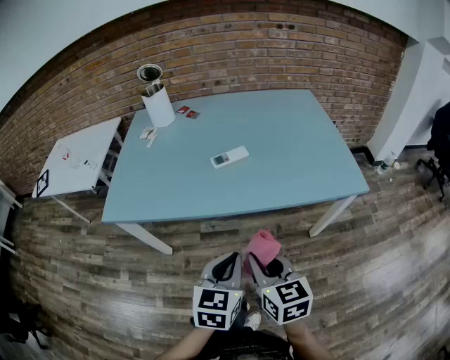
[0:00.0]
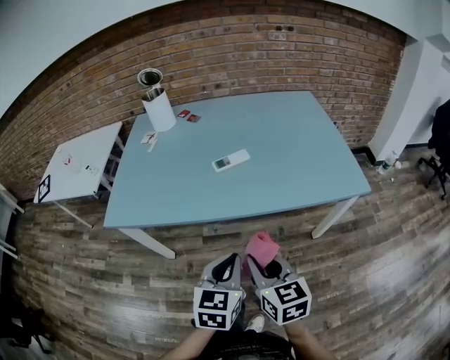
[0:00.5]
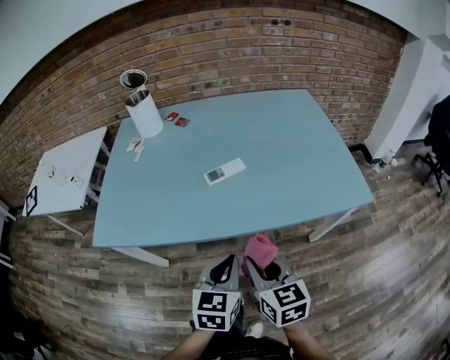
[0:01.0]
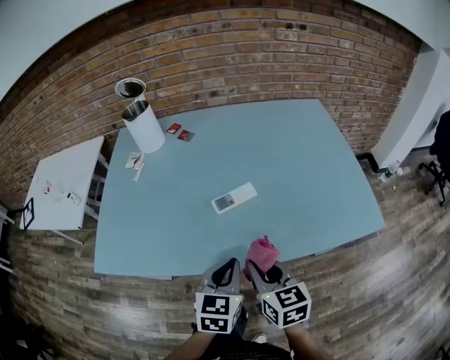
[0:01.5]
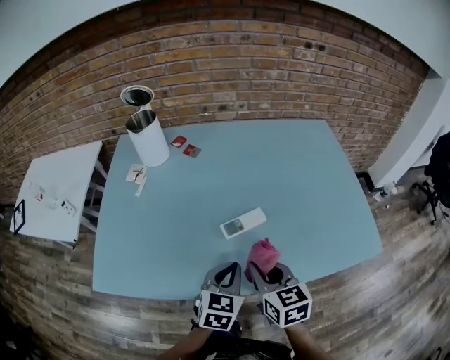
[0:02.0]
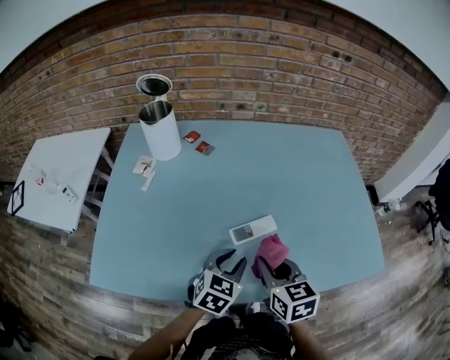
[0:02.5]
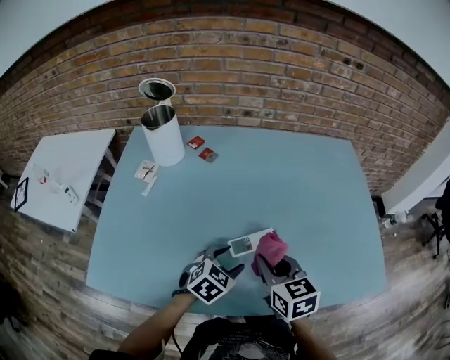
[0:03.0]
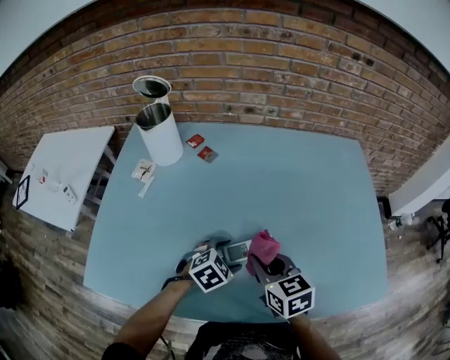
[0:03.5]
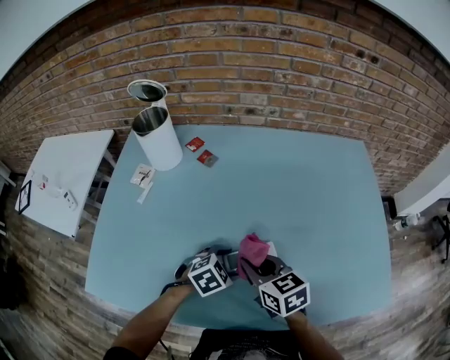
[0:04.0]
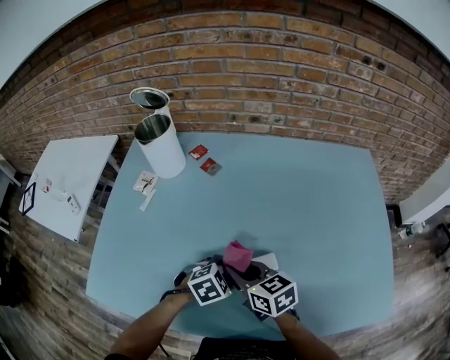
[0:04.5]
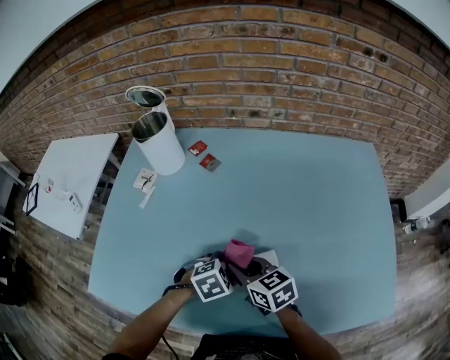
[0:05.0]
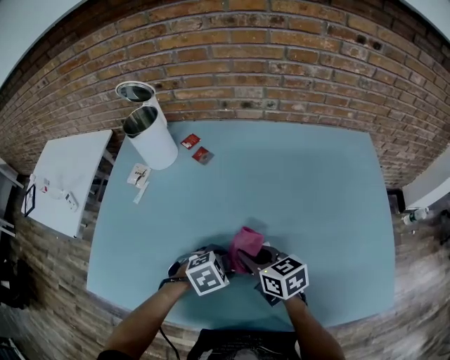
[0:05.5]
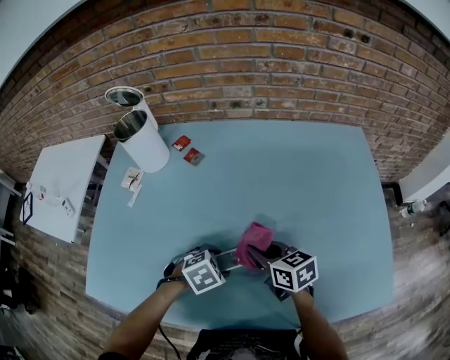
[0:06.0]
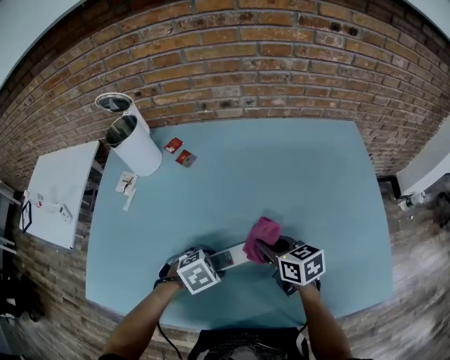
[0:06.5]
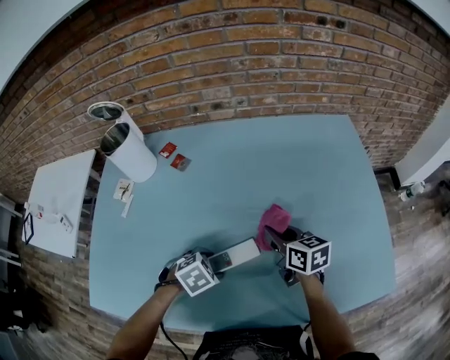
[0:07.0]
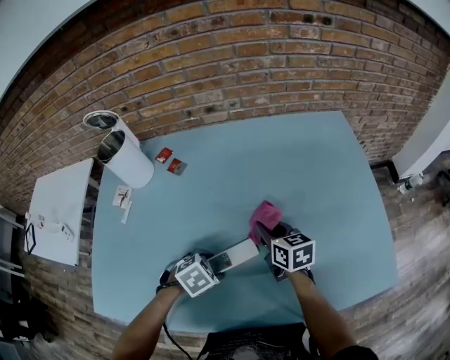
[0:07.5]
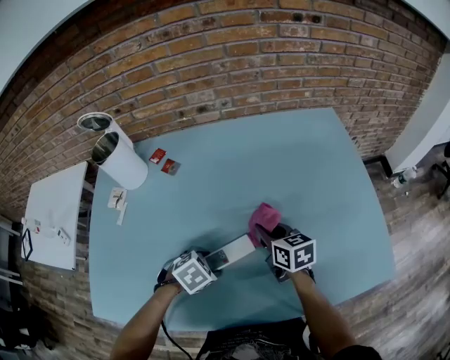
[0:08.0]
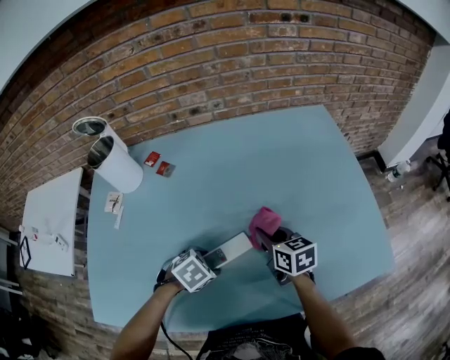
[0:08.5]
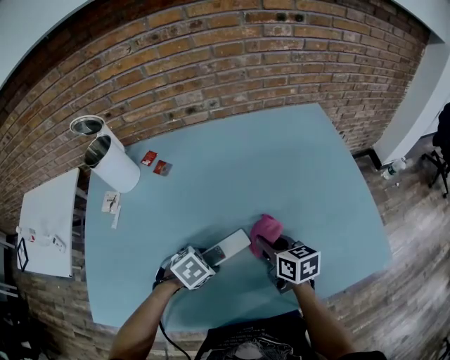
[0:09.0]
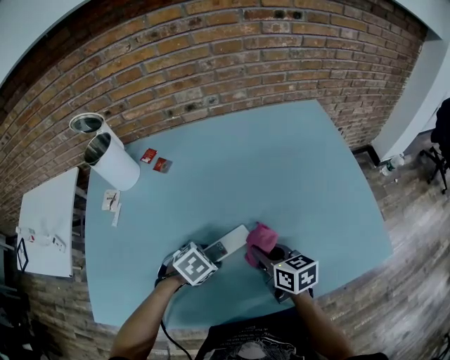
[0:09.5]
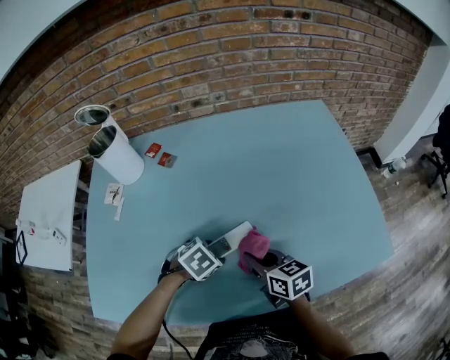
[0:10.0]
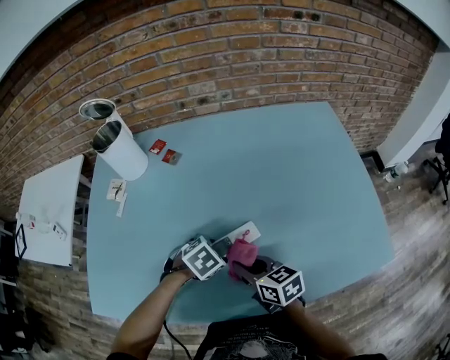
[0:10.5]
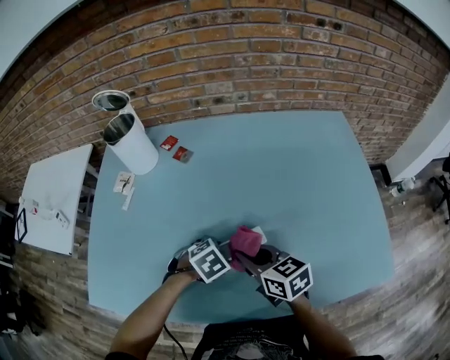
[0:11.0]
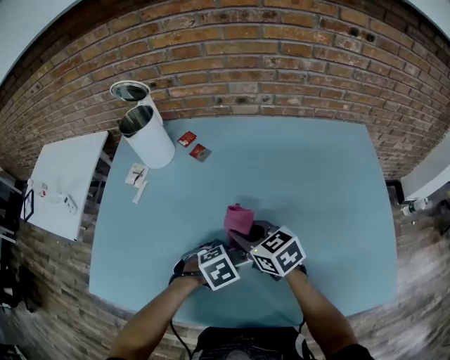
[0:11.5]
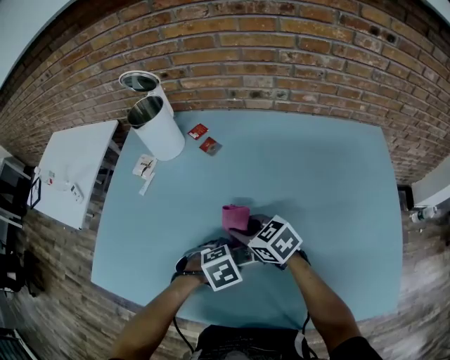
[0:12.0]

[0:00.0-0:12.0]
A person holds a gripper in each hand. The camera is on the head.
0:00.0 to 0:02.0: The two grippers go approximately 25 cm forward.
0:02.0 to 0:04.0: The right gripper goes approximately 15 cm forward, and rotates some 20 degrees; the left gripper shifts some 15 cm forward and downward, swivels roughly 40 degrees, and opens.
0:04.0 to 0:06.0: The right gripper changes place by about 10 cm.
0:06.0 to 0:08.0: The right gripper moves forward and to the right, some 10 cm.
0:08.0 to 0:10.0: The right gripper is displaced backward by approximately 15 cm.
0:10.0 to 0:12.0: The right gripper changes place by about 15 cm, and changes its angle by roughly 40 degrees.

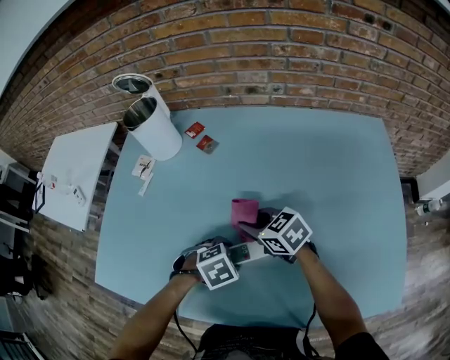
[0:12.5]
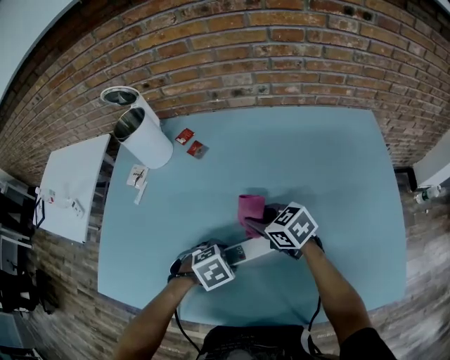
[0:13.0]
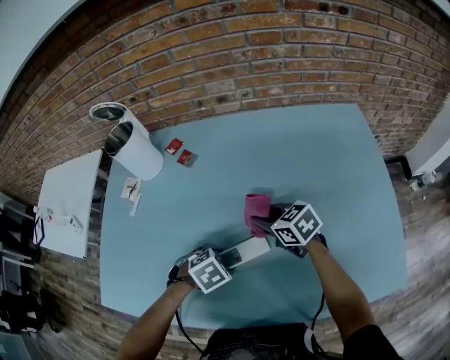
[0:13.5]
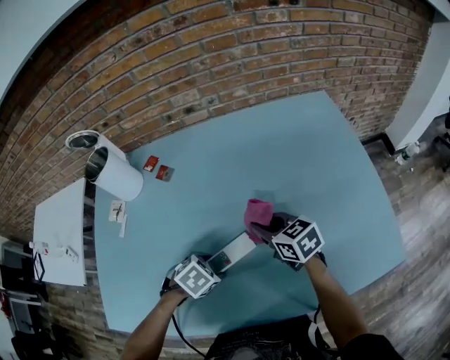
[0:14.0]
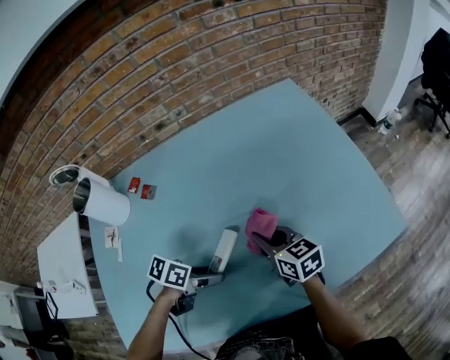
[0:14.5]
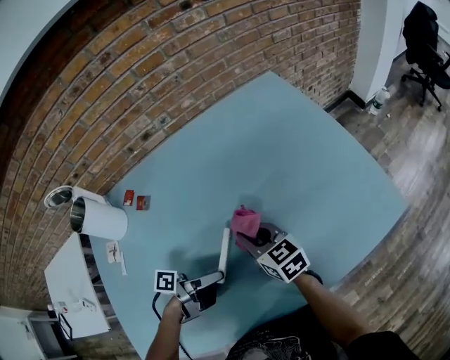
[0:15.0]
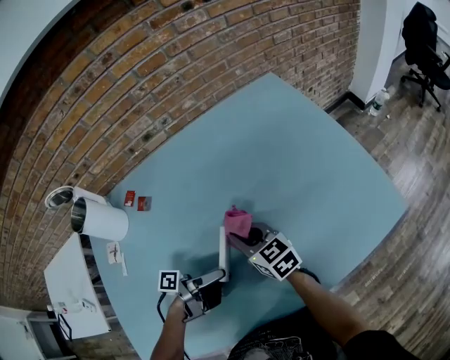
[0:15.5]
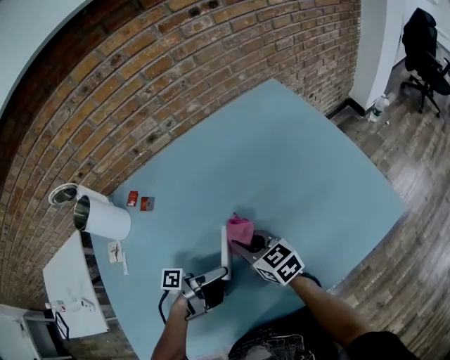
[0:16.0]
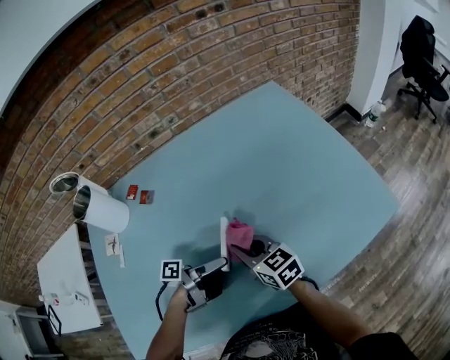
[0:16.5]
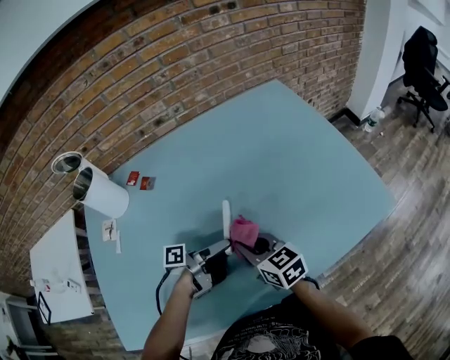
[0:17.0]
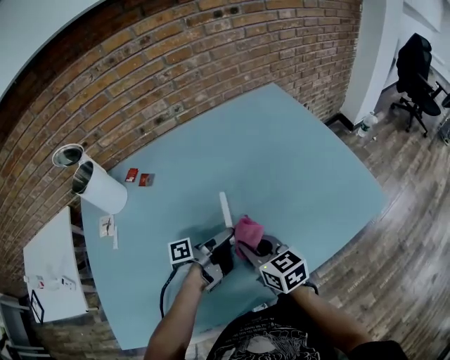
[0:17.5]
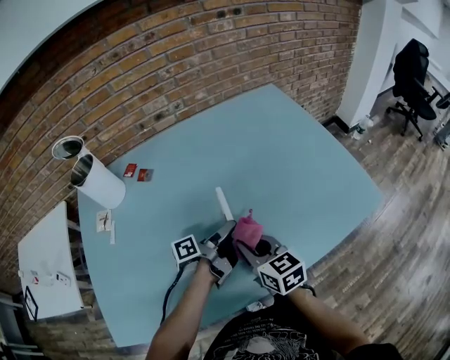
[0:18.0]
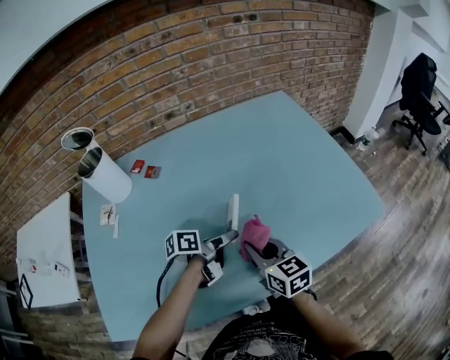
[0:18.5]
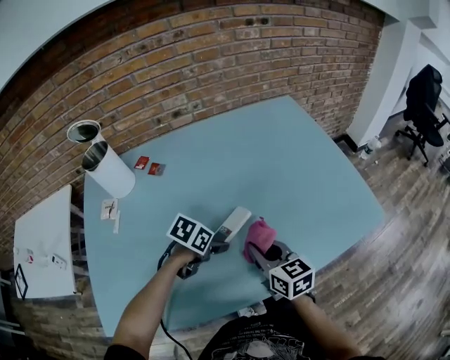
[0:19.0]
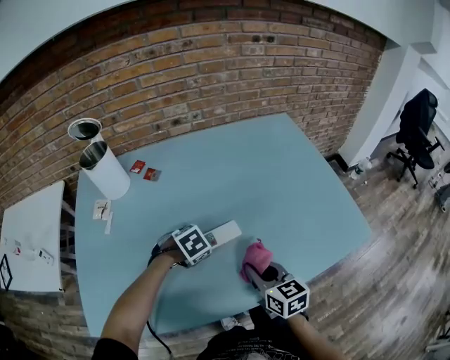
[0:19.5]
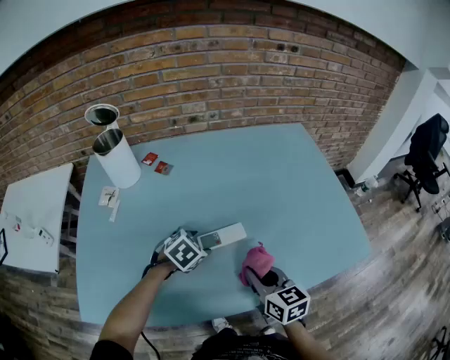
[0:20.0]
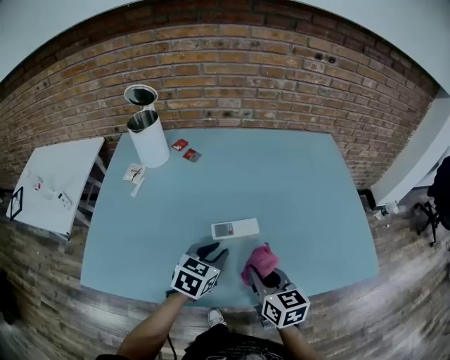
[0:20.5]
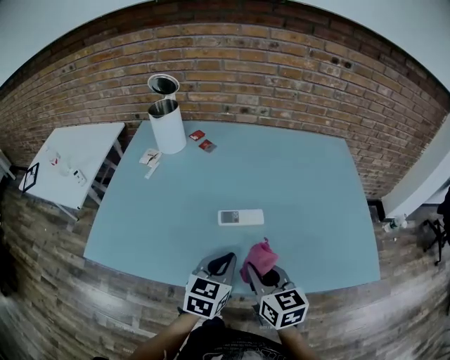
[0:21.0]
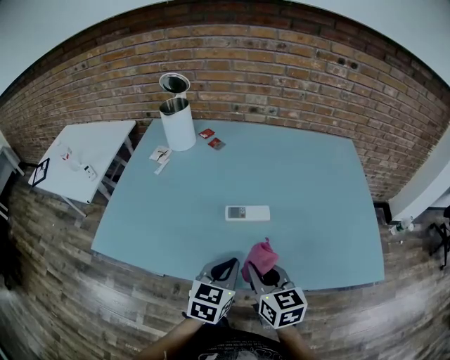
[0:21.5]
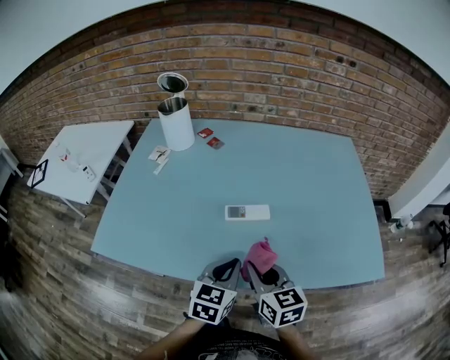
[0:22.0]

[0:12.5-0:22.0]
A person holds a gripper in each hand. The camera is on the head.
0:12.5 to 0:14.5: The right gripper moves roughly 15 cm, and swivels some 50 degrees. Meanwhile the left gripper angles its fingers upward, by approximately 30 degrees.
0:14.5 to 0:16.5: The left gripper angles its fingers upward, by roughly 40 degrees, while the right gripper changes place by some 10 cm.
0:16.5 to 0:18.0: The left gripper swivels approximately 20 degrees. Meanwhile the right gripper is displaced backward by some 5 cm.
0:18.0 to 0:20.0: The right gripper changes place by approximately 5 cm, while the left gripper heads to the left, covering approximately 10 cm, and rotates around the line of its fingers by about 90 degrees, clockwise from behind.
0:20.0 to 0:22.0: The left gripper travels backward and upward by roughly 20 cm, angles its fingers upward, by approximately 30 degrees, and closes its fingers. Meanwhile the right gripper heads backward, covering roughly 5 cm.

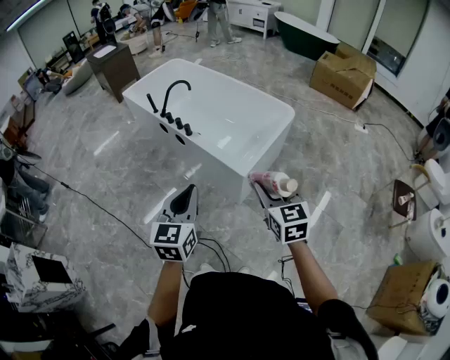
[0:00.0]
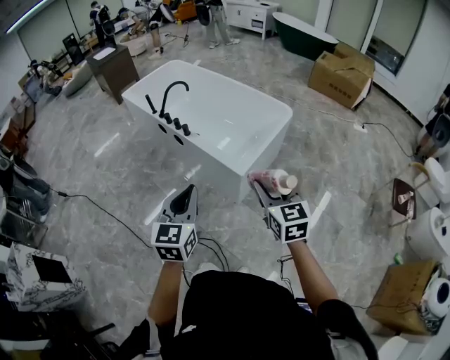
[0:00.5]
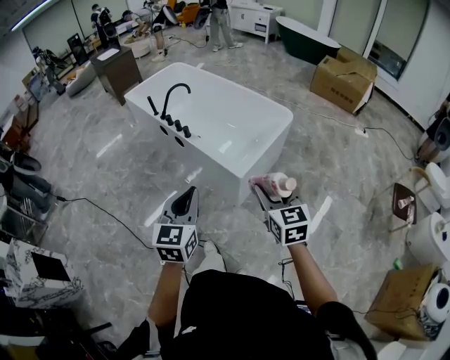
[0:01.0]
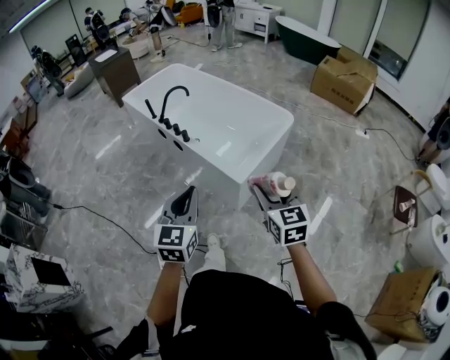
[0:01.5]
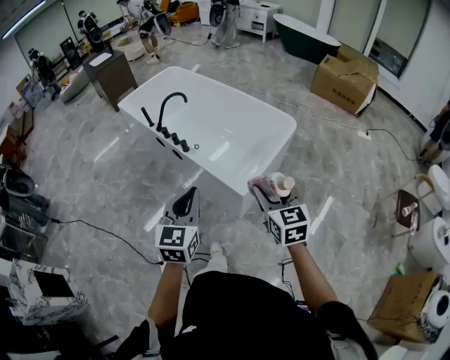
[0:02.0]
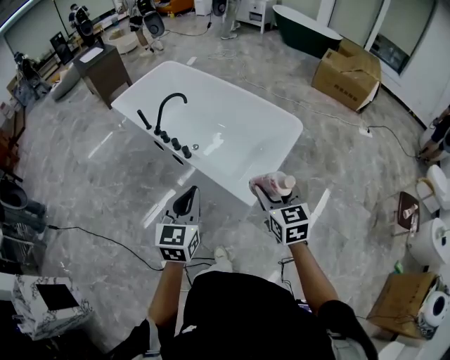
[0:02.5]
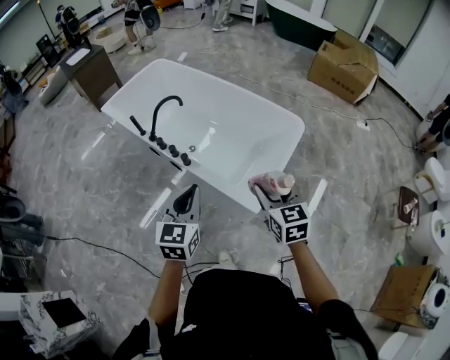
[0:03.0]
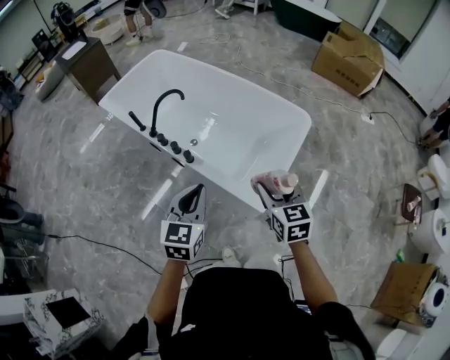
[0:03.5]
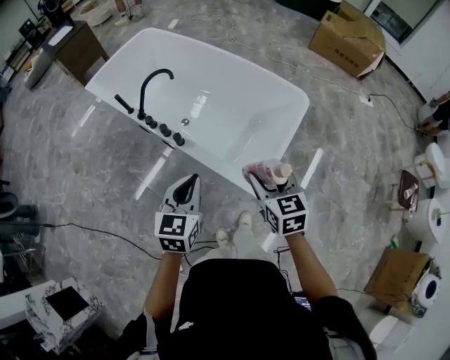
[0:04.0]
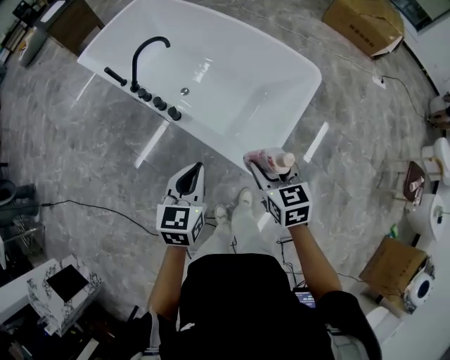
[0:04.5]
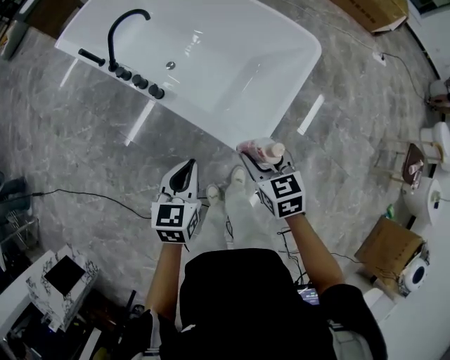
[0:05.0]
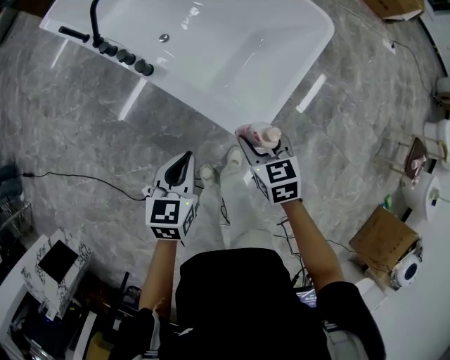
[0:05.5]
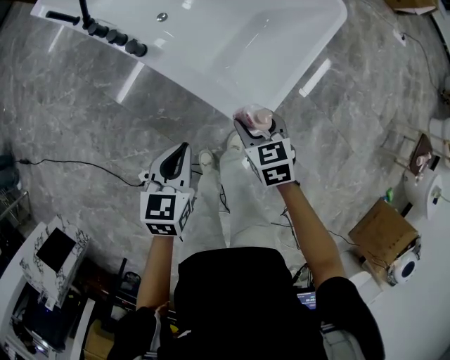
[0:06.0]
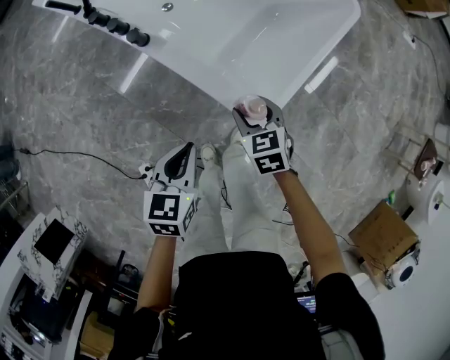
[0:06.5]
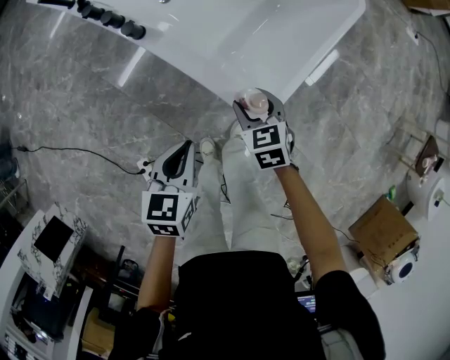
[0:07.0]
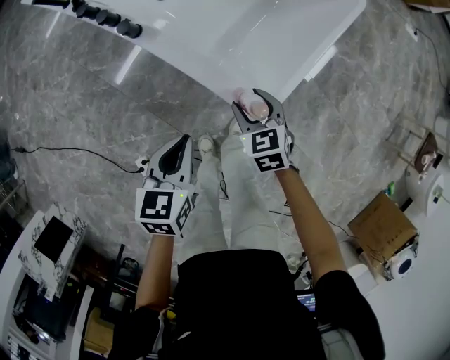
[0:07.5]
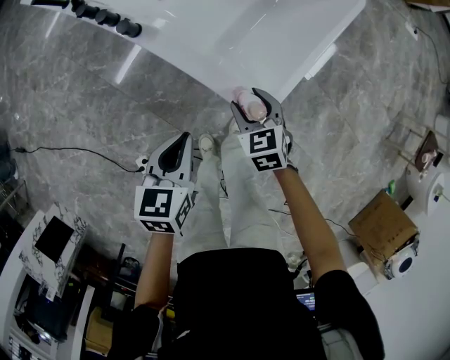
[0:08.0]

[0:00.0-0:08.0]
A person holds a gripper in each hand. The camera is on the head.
0:00.0 to 0:02.0: Both grippers travel together forward, some 10 cm.
0:02.0 to 0:04.0: The left gripper moves forward, approximately 25 cm, while the right gripper moves forward and to the left, some 25 cm.
0:04.0 to 0:06.0: Both grippers travel together downward, roughly 30 cm. The left gripper turns by some 20 degrees. The right gripper turns by roughly 20 degrees.
0:06.0 to 0:08.0: The right gripper heads downward, covering approximately 5 cm.
